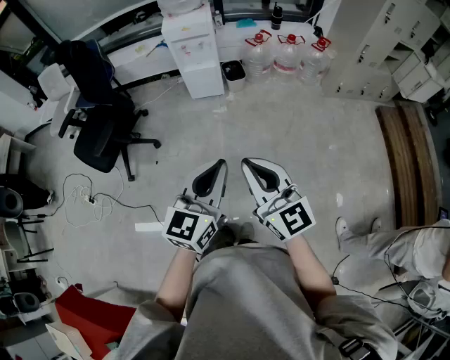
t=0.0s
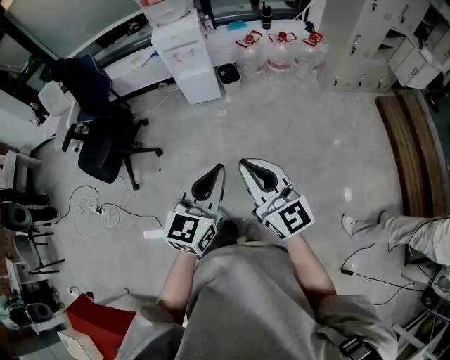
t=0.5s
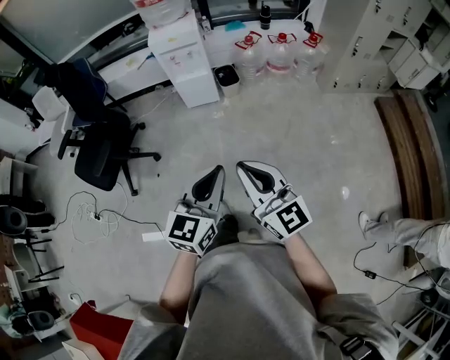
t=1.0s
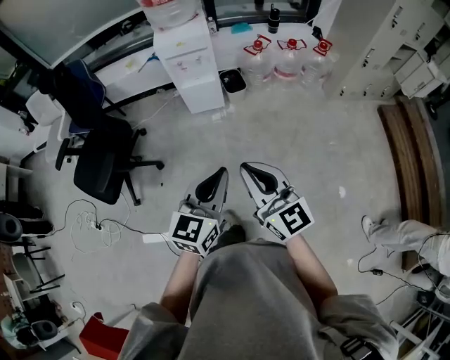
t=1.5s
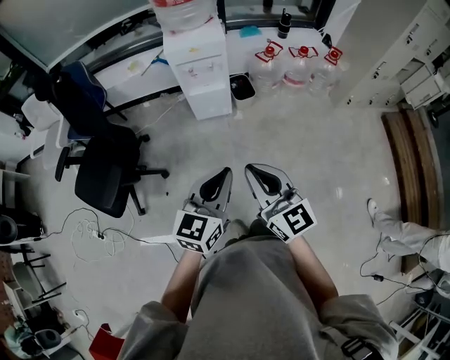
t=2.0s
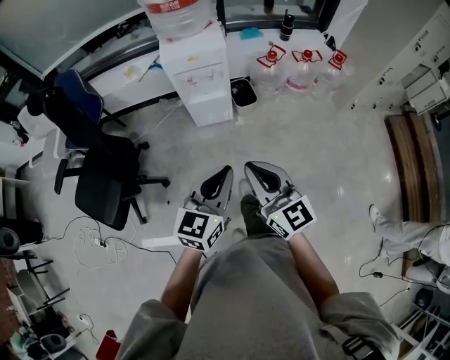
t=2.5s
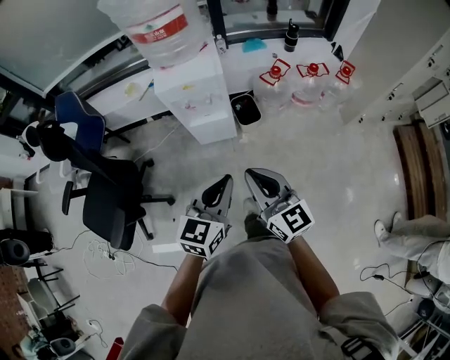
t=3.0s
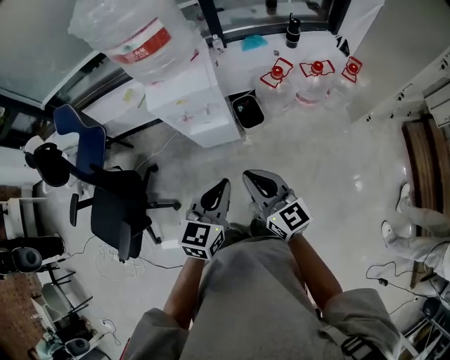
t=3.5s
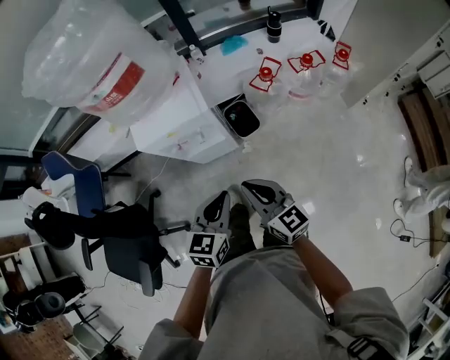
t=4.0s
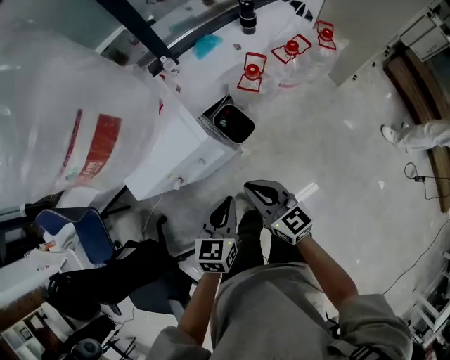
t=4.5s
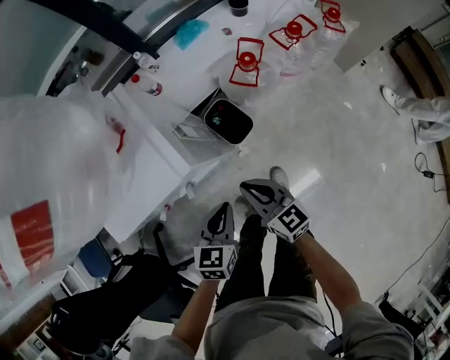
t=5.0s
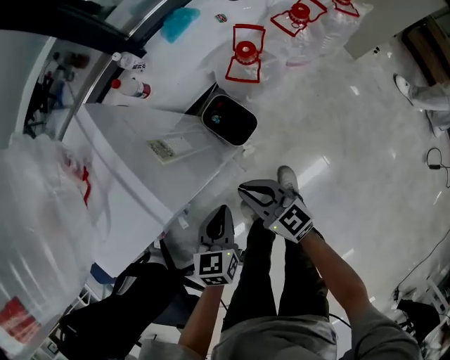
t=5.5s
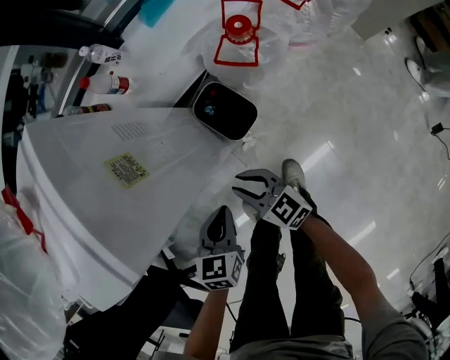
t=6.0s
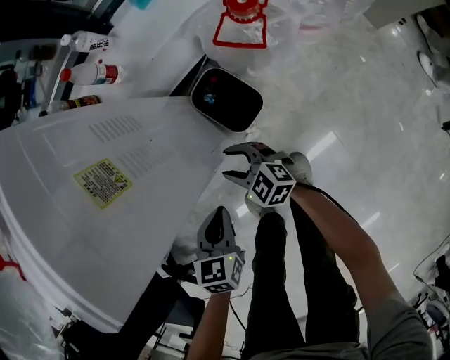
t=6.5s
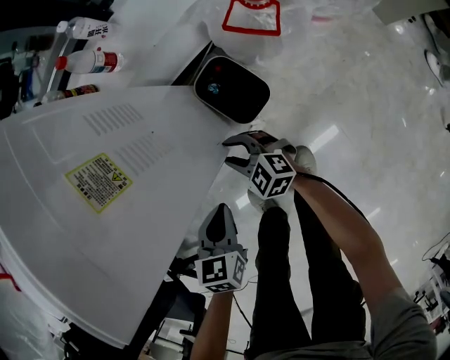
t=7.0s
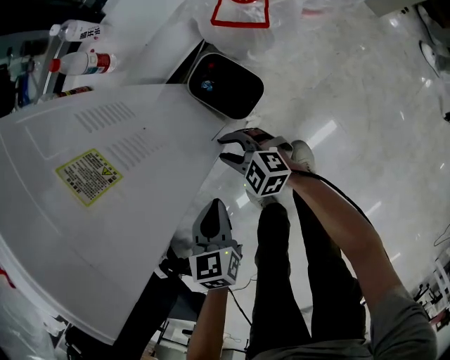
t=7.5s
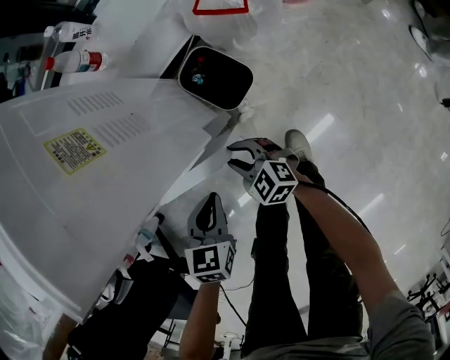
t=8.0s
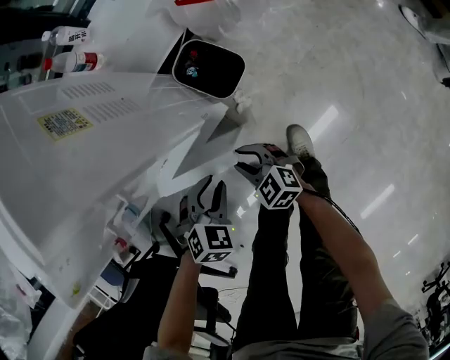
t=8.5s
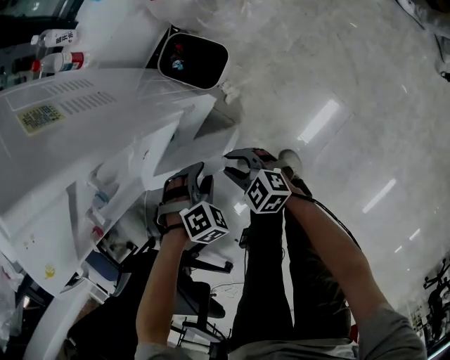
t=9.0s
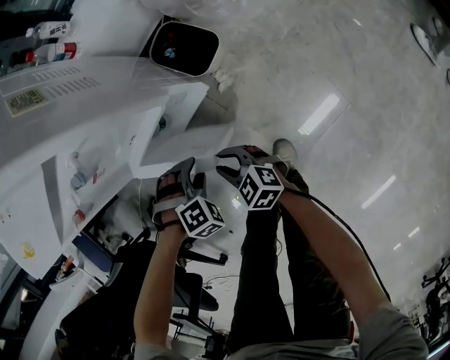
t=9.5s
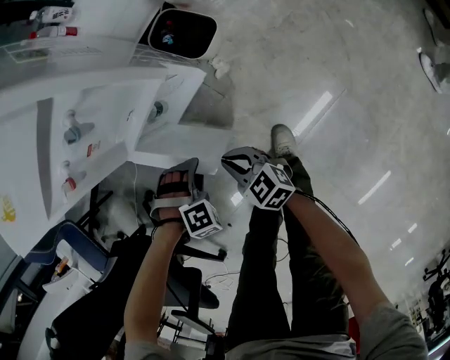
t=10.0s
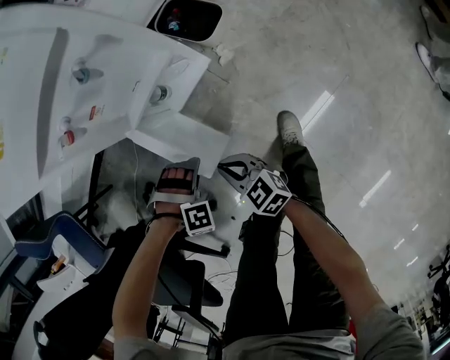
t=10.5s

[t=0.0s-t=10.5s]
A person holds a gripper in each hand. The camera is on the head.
t=0.0s to t=2.0s: Both grippers move forward and to the left, some 30 cm.
t=2.0s to t=4.0s: Both grippers move forward, roughly 40 cm.
t=4.0s to t=6.5s: Both grippers move downward and forward, about 50 cm. The right gripper changes its angle by about 30 degrees, and opens up. The left gripper changes its angle by about 20 degrees.
t=6.5s to t=8.5s: The right gripper is displaced backward by about 10 cm. Meanwhile the left gripper shifts approximately 5 cm backward, rolls clockwise, seen from behind, by roughly 50 degrees, and opens.
t=8.5s to t=10.5s: The left gripper shifts by some 20 cm, rotates around the line of its fingers by some 60 degrees, clockwise from behind, and opens its fingers; the right gripper changes place by roughly 25 cm, and closes up.

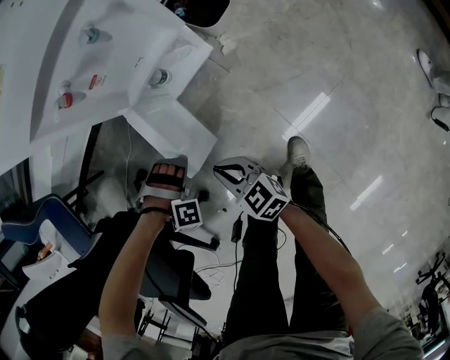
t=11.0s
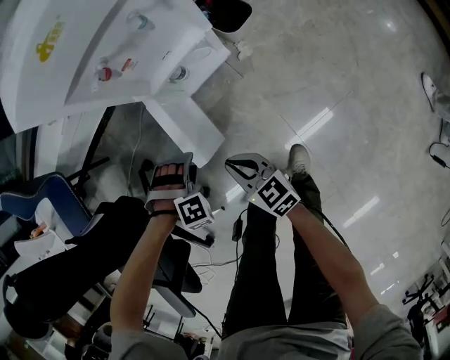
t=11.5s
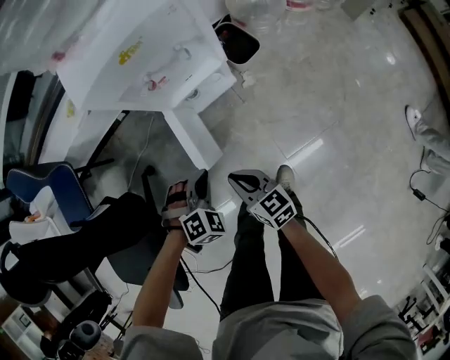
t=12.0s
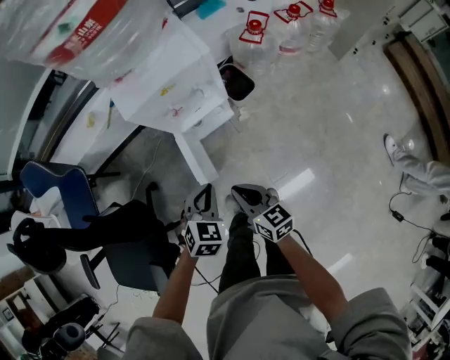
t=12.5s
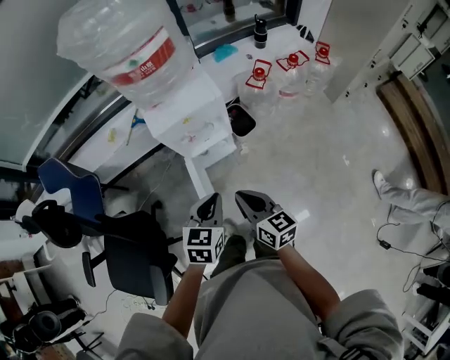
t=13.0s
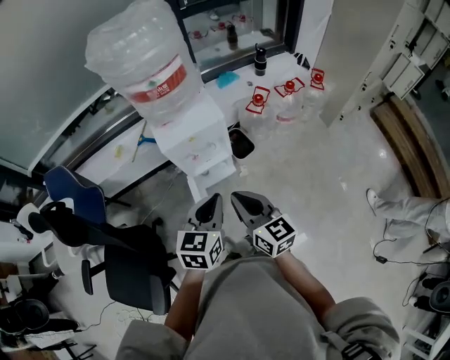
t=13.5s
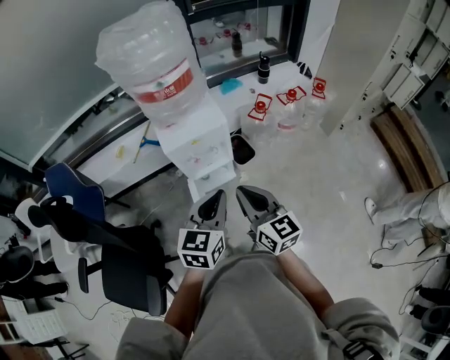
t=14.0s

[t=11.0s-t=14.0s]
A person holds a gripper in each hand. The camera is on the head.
t=11.0s to t=12.5s: The two grippers go roughly 35 cm upward. The left gripper rotates around the line of its fingers by roughly 90 degrees, counterclockwise from behind, and closes.
t=12.5s to t=14.0s: The grippers both shift upward by roughly 30 cm. The right gripper rotates about 20 degrees, while the left gripper tilts its fingers some 30 degrees upward.

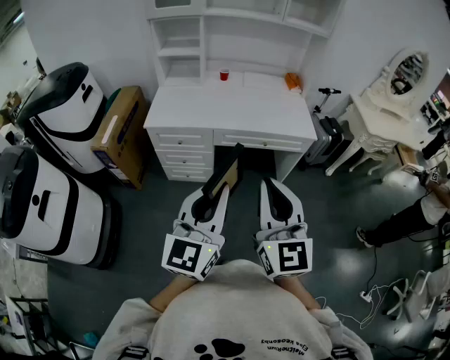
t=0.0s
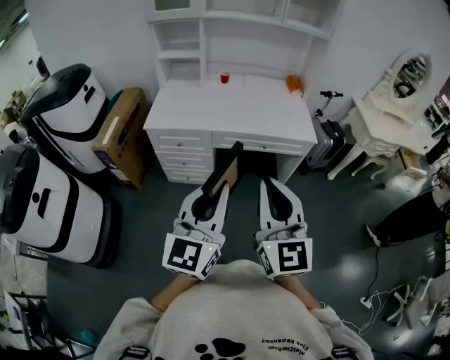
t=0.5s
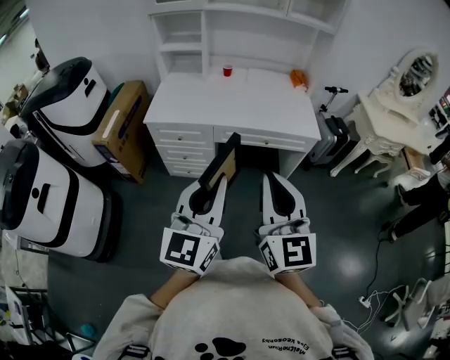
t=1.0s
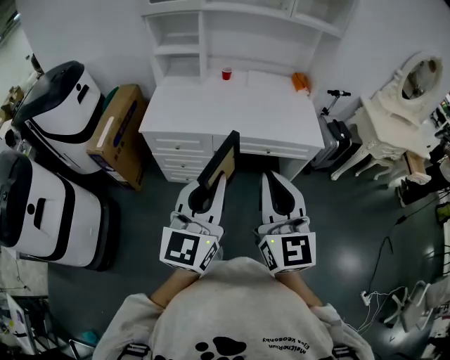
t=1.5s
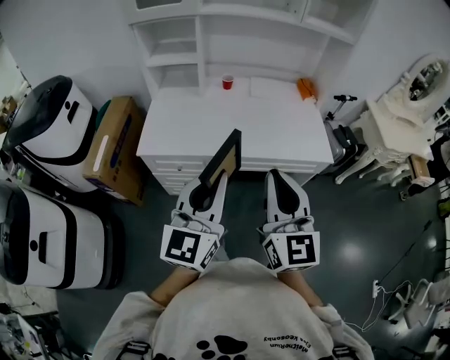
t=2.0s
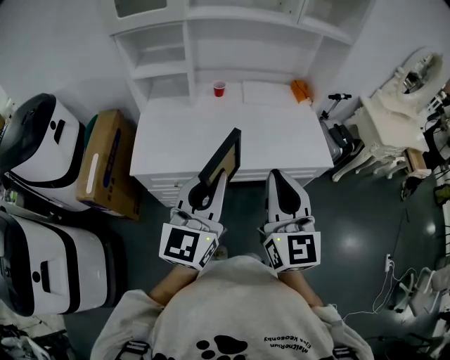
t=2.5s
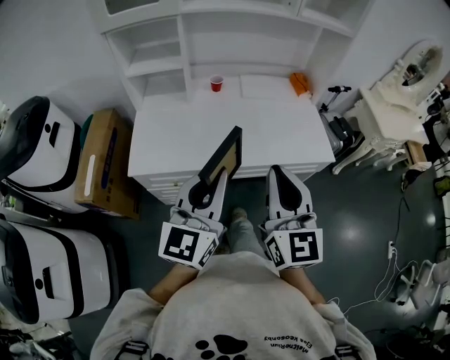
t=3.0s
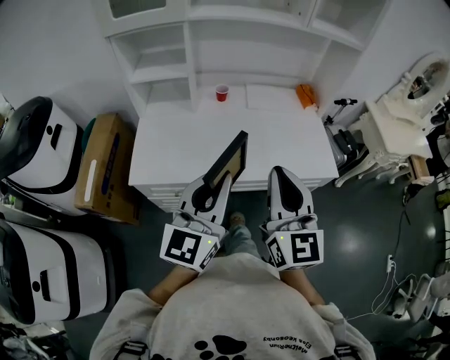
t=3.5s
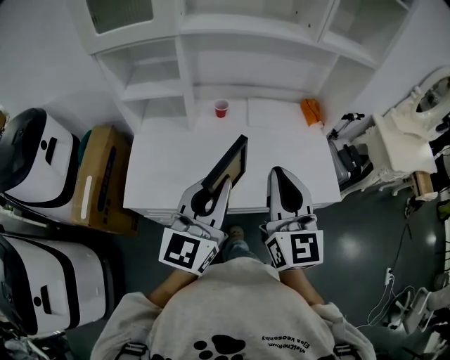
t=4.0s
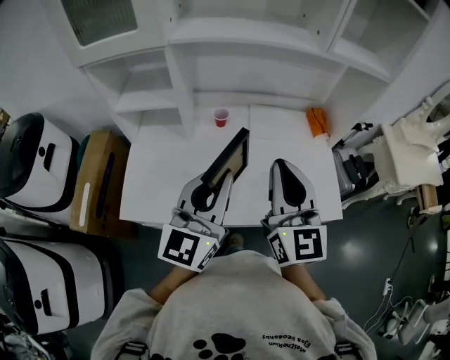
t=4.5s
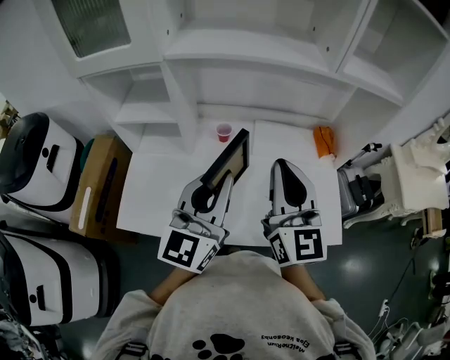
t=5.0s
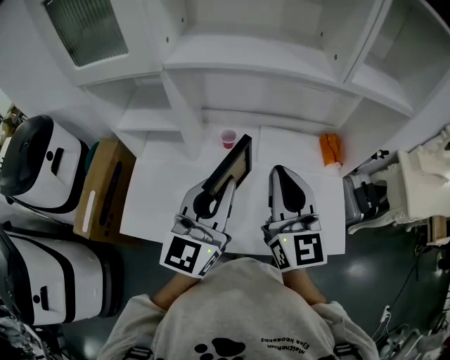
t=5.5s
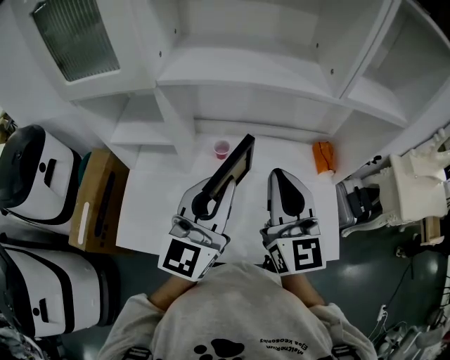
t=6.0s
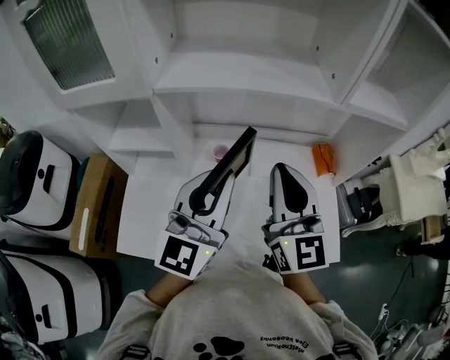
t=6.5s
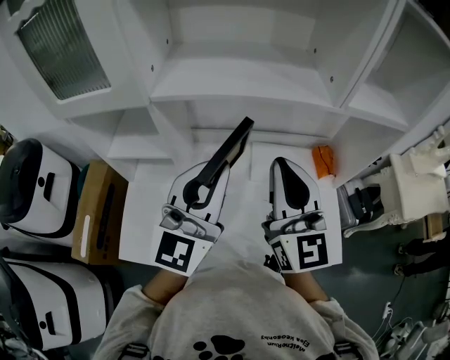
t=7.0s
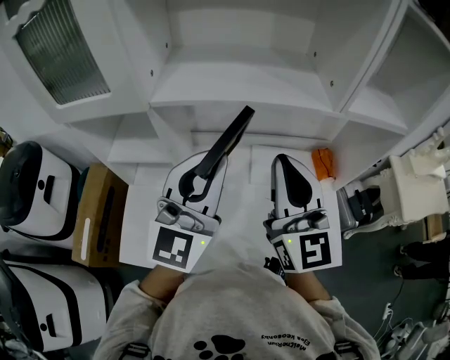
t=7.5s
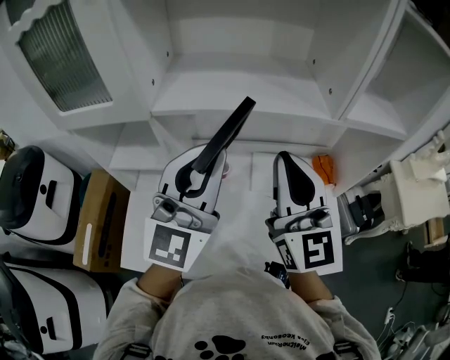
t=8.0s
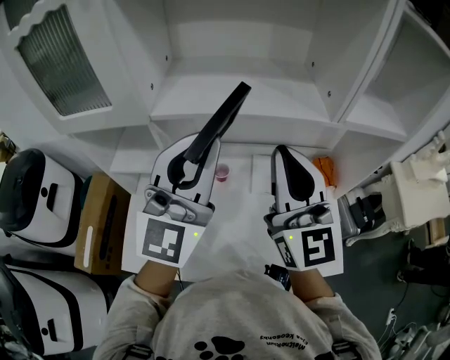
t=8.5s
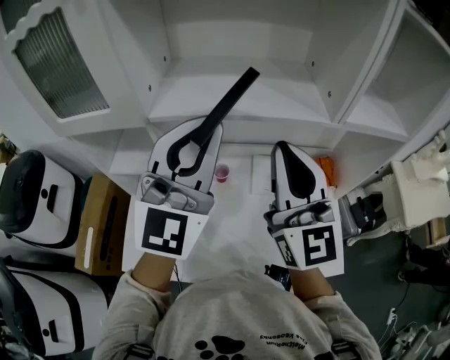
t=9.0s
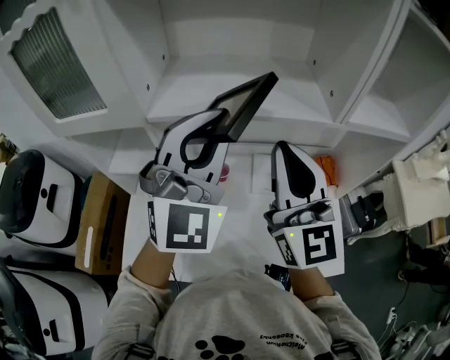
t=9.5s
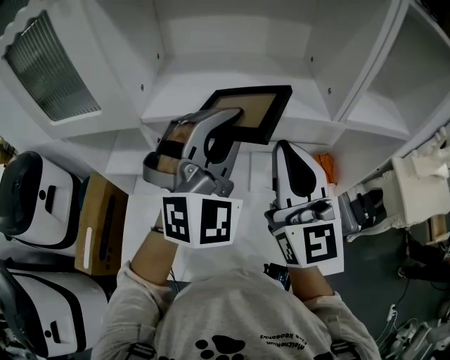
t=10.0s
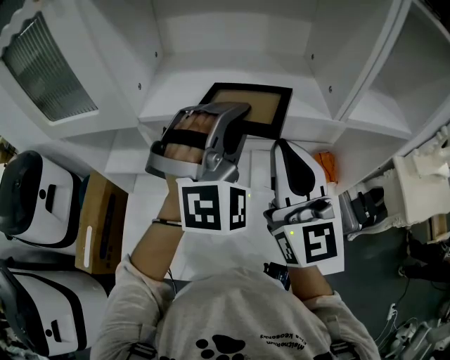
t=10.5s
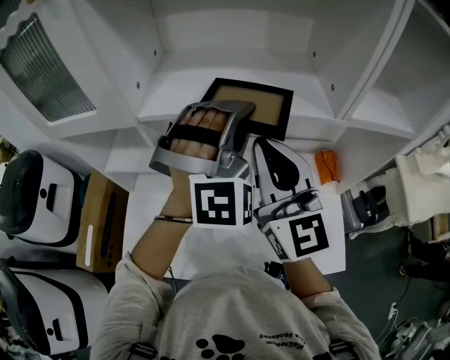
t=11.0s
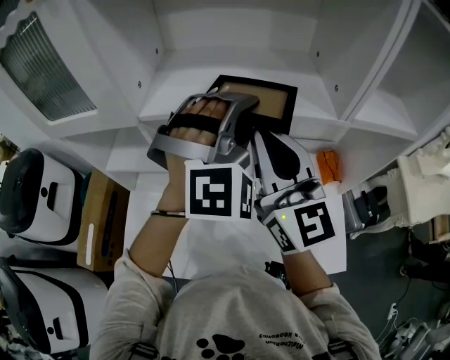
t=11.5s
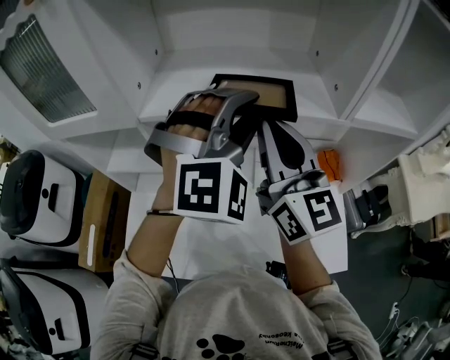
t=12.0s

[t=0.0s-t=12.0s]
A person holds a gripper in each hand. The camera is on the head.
t=0.0s to t=2.0s: The two grippers go roughly 25 cm forward.
t=2.0s to t=4.0s: Both grippers move forward, about 25 cm.
t=4.0s to t=6.0s: The grippers both shift forward by roughly 25 cm.
t=6.0s to t=8.0s: The grippers both shift upward and forward by approximately 10 cm.
t=8.0s to t=10.0s: The left gripper moves forward, approximately 5 cm, and rolls clockwise, seen from behind, by approximately 40 degrees.
t=10.0s to t=12.0s: The right gripper travels forward by approximately 5 cm. The left gripper moves some 5 cm, swivels roughly 20 degrees, and opens.

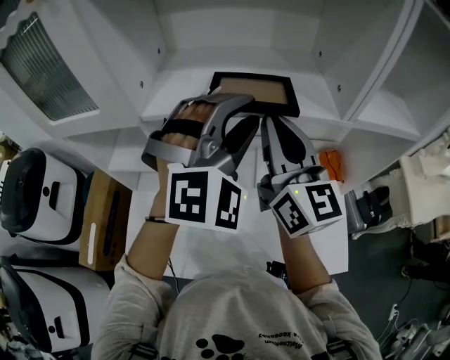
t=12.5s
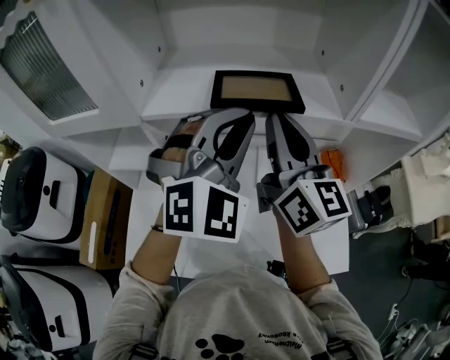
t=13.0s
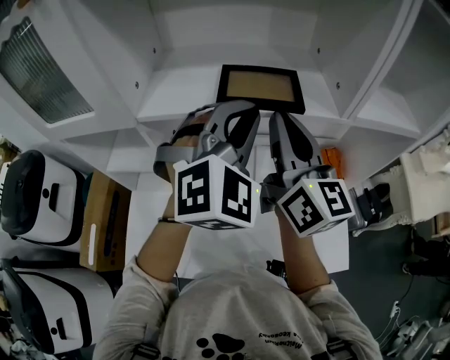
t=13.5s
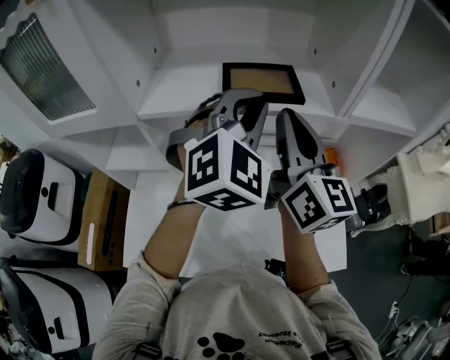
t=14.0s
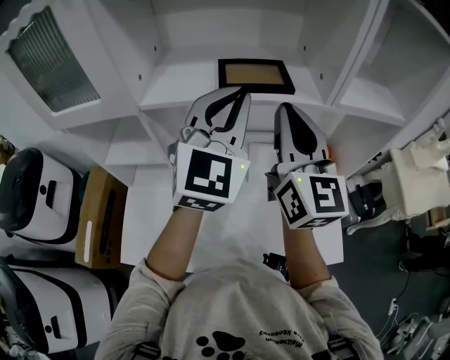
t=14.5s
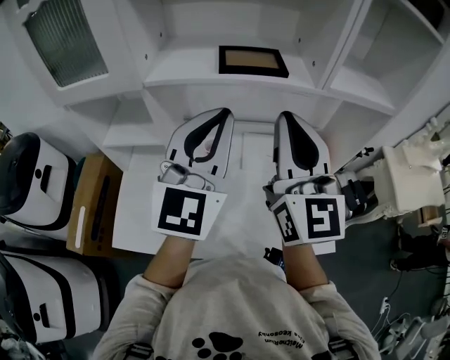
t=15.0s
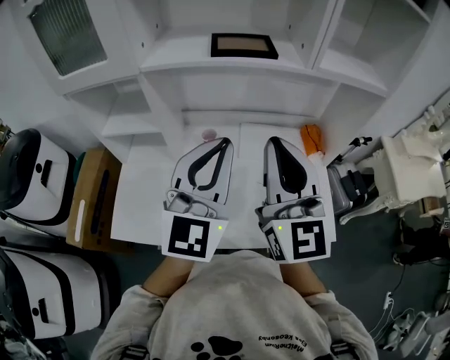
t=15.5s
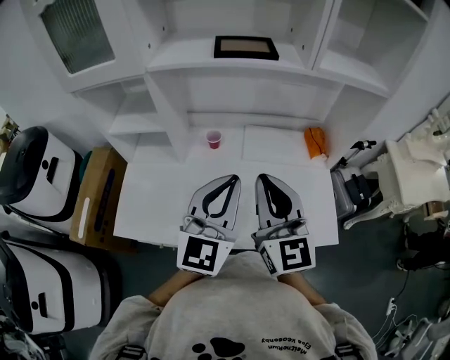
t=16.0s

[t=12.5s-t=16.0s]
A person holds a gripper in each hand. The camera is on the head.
t=12.5s to t=14.5s: The right gripper changes place by about 5 cm. Meanwhile the left gripper swivels approximately 40 degrees, and closes up.
t=14.5s to t=16.0s: The grippers both shift backward and downward by roughly 25 cm.
